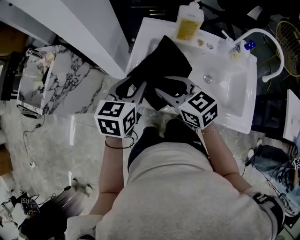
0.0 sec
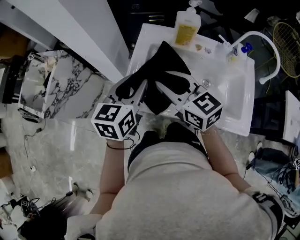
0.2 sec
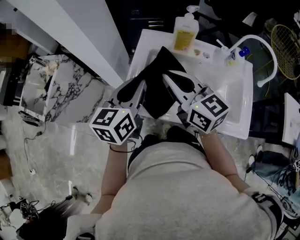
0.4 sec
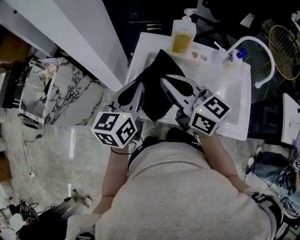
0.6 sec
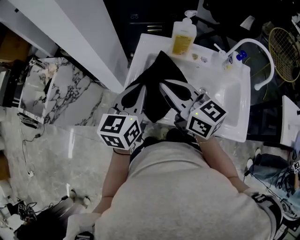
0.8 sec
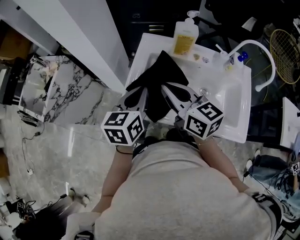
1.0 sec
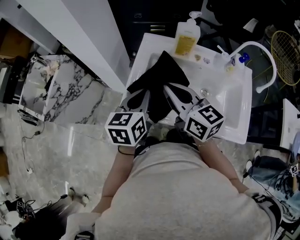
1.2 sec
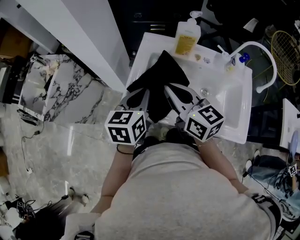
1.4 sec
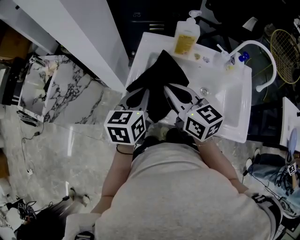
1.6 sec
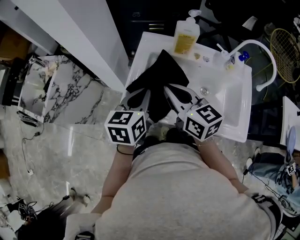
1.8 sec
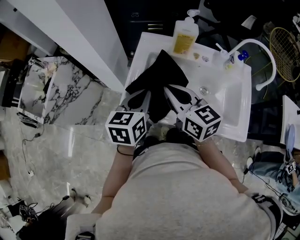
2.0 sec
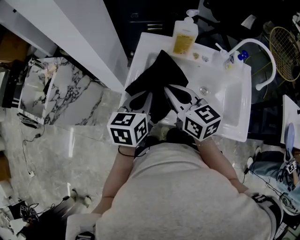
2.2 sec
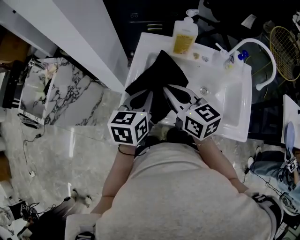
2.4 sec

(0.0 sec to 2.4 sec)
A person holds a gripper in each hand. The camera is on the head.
0.0 sec - 1.2 sec: The left gripper closes its fingers. Meanwhile the right gripper goes approximately 5 cm upward, turns by approximately 20 degrees, and closes up.
1.2 sec - 2.4 sec: The grippers make only small movements.

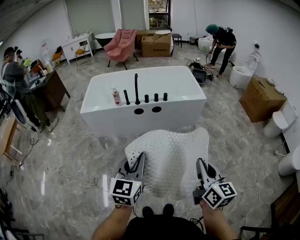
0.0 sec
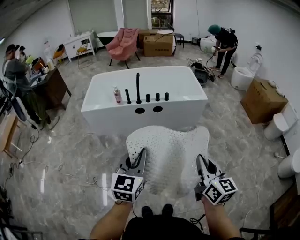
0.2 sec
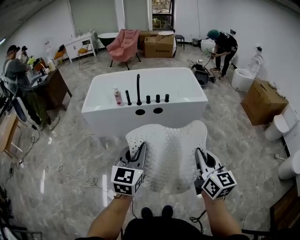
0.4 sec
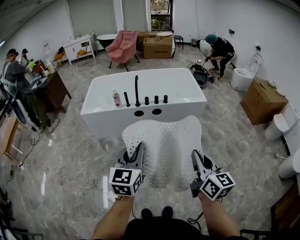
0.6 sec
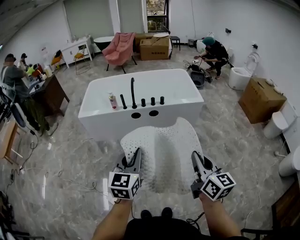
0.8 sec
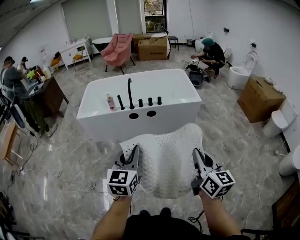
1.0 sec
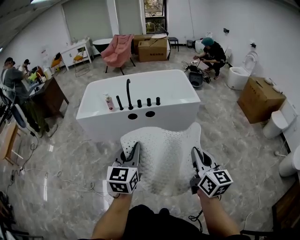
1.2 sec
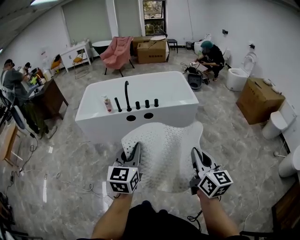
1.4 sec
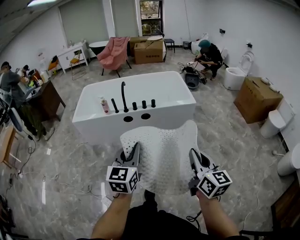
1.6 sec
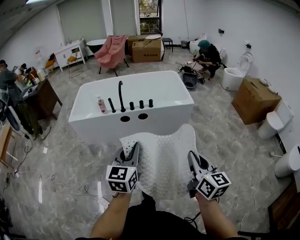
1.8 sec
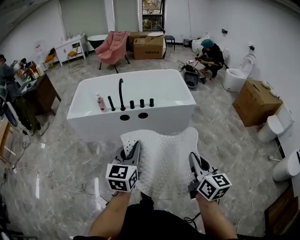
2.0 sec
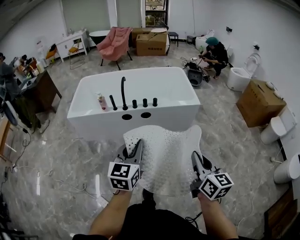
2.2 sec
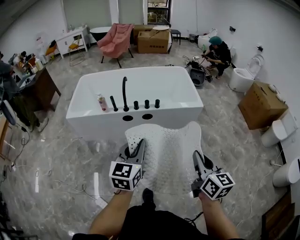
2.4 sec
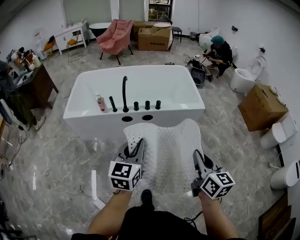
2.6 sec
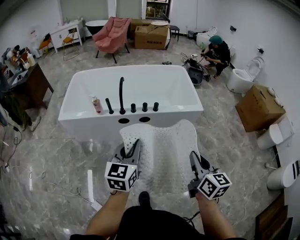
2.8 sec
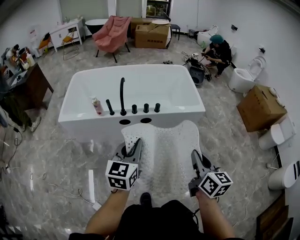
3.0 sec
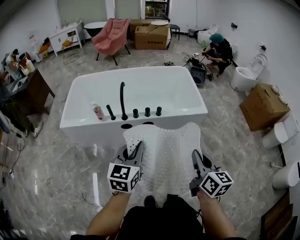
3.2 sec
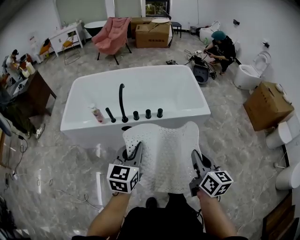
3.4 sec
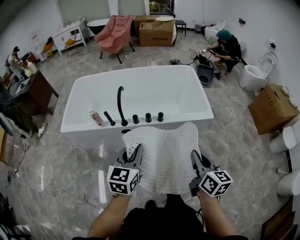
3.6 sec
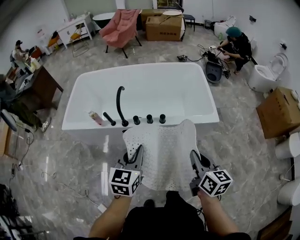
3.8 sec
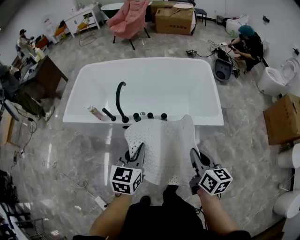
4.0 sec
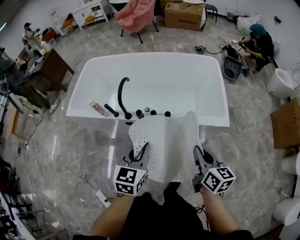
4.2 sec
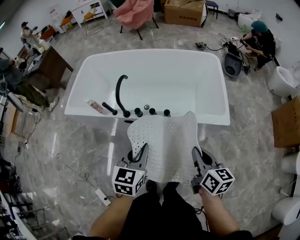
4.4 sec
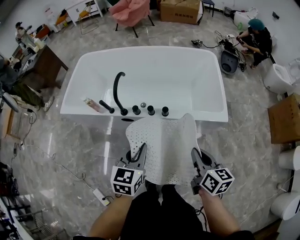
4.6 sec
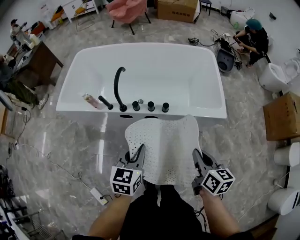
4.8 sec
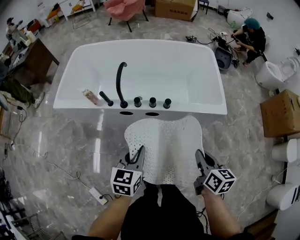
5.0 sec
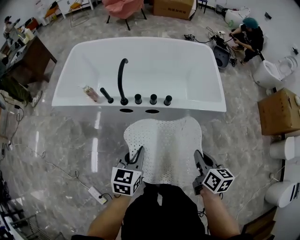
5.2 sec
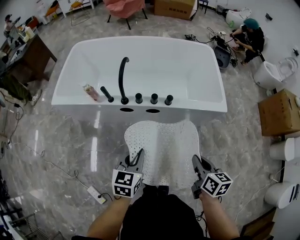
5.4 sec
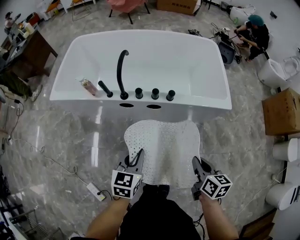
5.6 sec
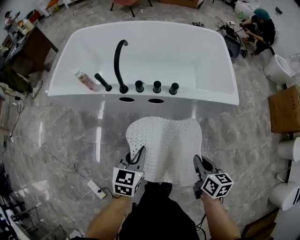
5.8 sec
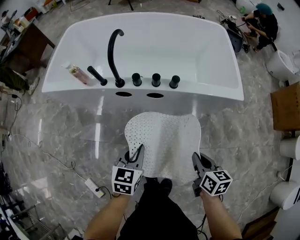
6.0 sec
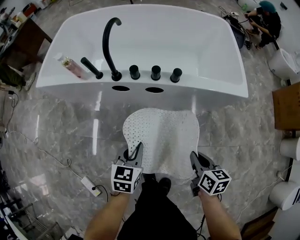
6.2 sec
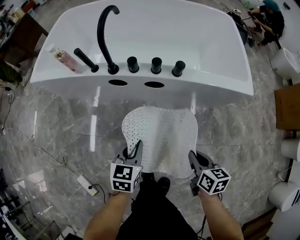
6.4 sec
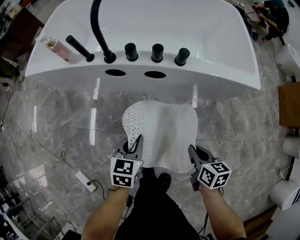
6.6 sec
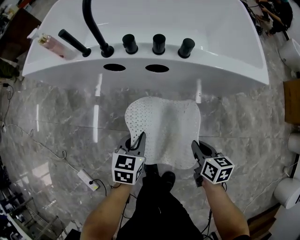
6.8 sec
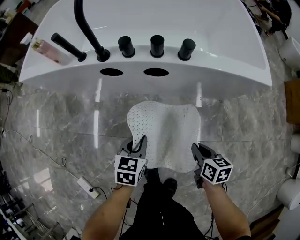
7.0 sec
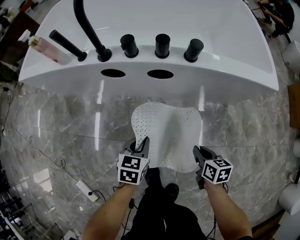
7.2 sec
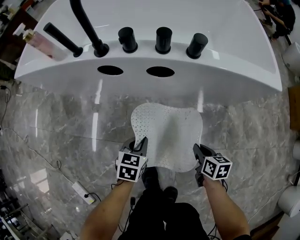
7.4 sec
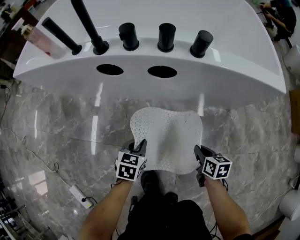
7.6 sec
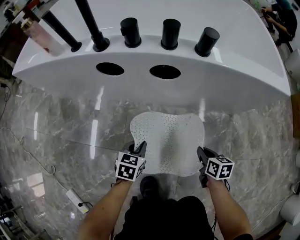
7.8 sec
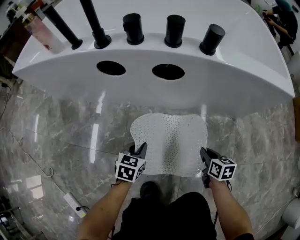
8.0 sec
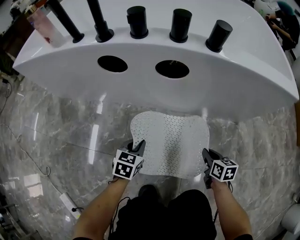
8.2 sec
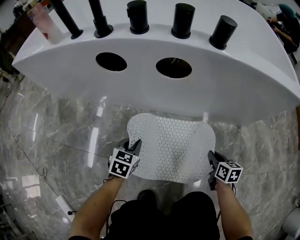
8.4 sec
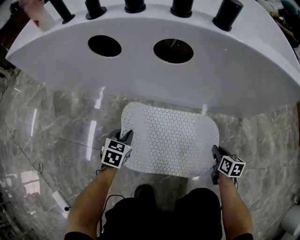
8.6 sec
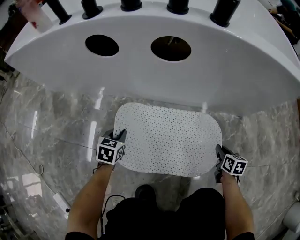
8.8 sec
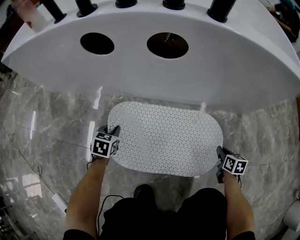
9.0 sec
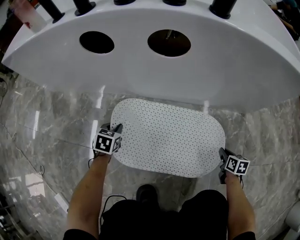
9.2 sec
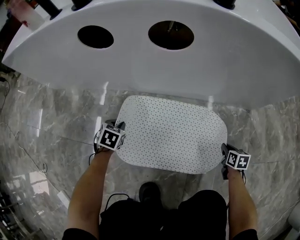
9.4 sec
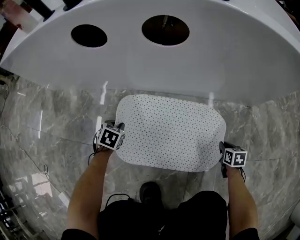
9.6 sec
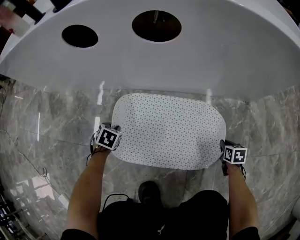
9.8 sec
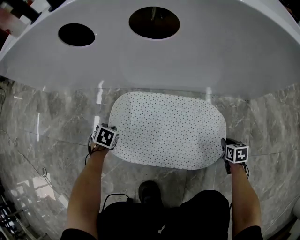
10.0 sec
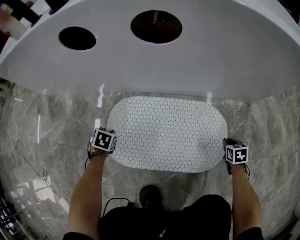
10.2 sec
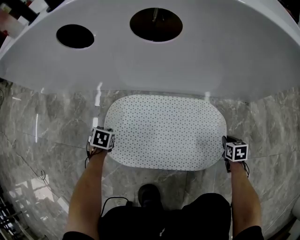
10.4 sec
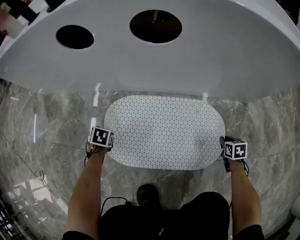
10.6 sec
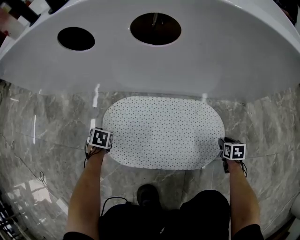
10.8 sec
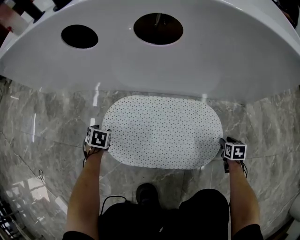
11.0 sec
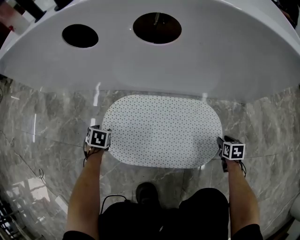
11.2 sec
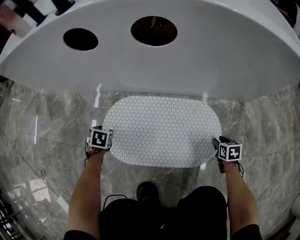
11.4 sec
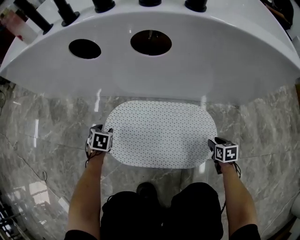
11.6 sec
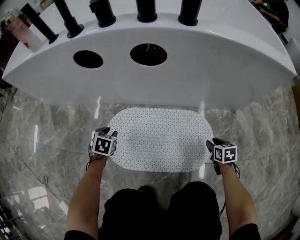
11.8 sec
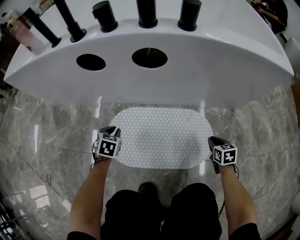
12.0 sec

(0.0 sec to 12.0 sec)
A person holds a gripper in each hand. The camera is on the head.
0.0 sec - 1.6 sec: The grippers both shift to the right and forward by approximately 10 cm.
1.6 sec - 3.0 sec: The grippers both shift forward by about 30 cm.
3.0 sec - 4.4 sec: The right gripper shifts approximately 30 cm forward and downward, and swivels approximately 20 degrees, while the left gripper shifts some 30 cm forward, to the right and downward.
4.4 sec - 6.0 sec: The left gripper travels downward by some 25 cm, while the right gripper heads downward and backward, covering approximately 25 cm.
6.0 sec - 7.6 sec: The two grippers go some 40 cm downward.
7.6 sec - 9.0 sec: The left gripper heads downward and to the left, covering approximately 25 cm. Meanwhile the right gripper moves downward and to the right, some 25 cm.
9.0 sec - 10.4 sec: Both grippers move downward, approximately 10 cm. The left gripper turns by roughly 20 degrees.
10.4 sec - 12.0 sec: Both grippers travel together upward, some 15 cm. The left gripper opens, then closes again, while the right gripper opens, then closes once more.

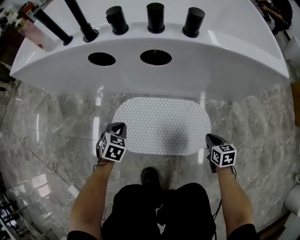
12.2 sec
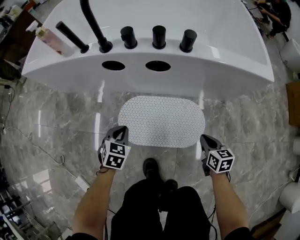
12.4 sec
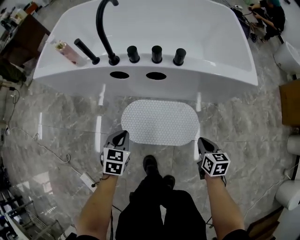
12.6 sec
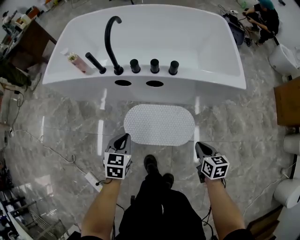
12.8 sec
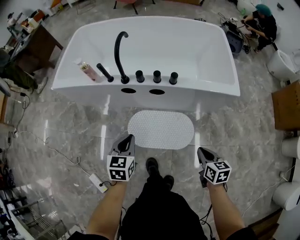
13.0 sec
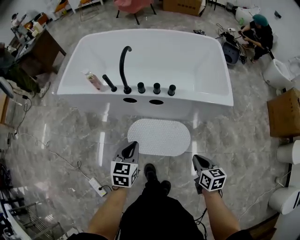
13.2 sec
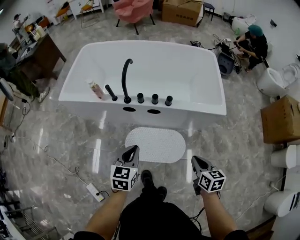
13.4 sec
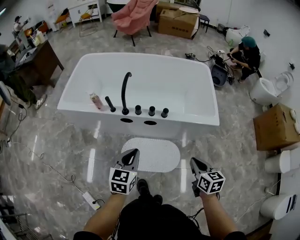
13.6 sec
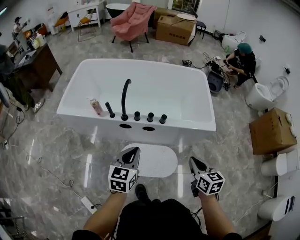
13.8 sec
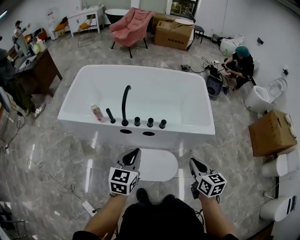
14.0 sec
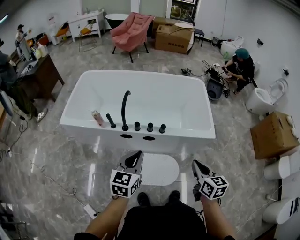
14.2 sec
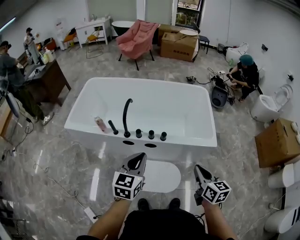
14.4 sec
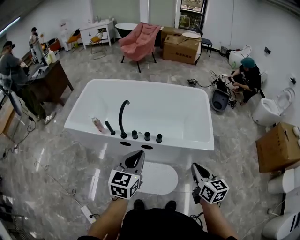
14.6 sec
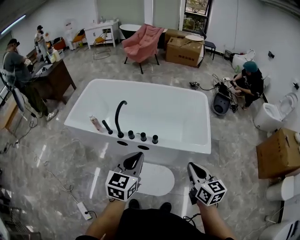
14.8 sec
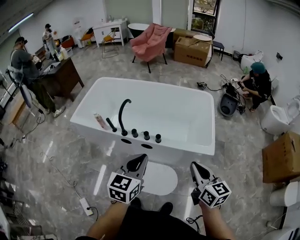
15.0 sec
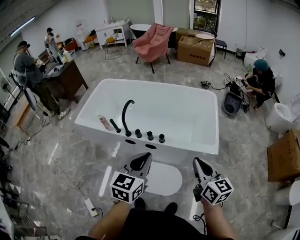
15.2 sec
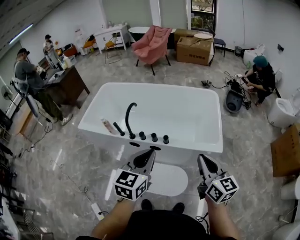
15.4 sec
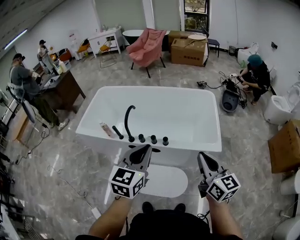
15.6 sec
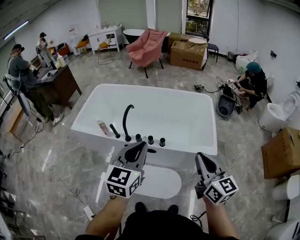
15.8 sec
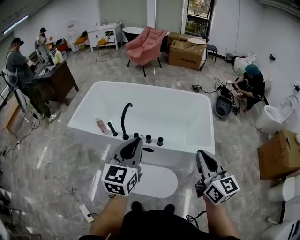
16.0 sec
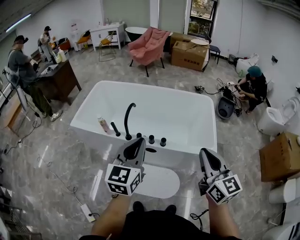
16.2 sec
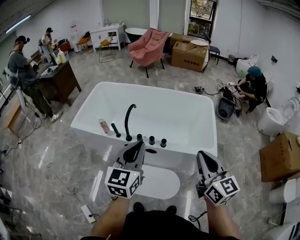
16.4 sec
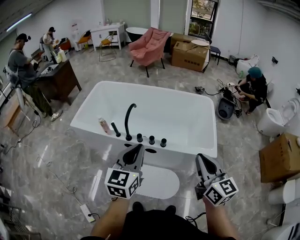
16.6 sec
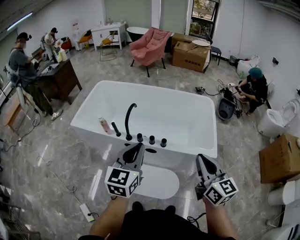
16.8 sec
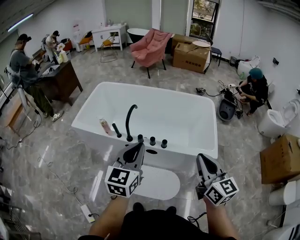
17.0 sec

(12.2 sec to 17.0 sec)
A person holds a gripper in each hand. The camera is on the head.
12.2 sec - 13.8 sec: Both grippers travel together upward, some 70 cm. The right gripper swivels some 20 degrees. The left gripper tilts its fingers roughly 40 degrees upward.
13.8 sec - 15.4 sec: The right gripper travels upward and to the right by about 20 cm, and turns by about 30 degrees. Meanwhile the left gripper shifts about 25 cm to the right and upward.
15.4 sec - 17.0 sec: The left gripper goes about 10 cm to the left, while the right gripper shifts some 5 cm to the left.

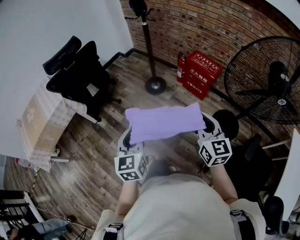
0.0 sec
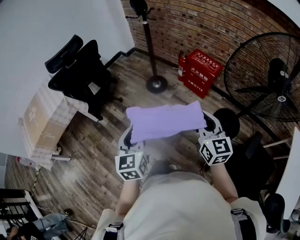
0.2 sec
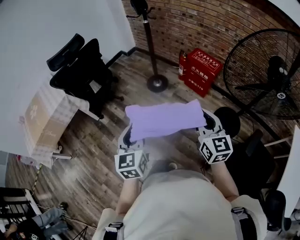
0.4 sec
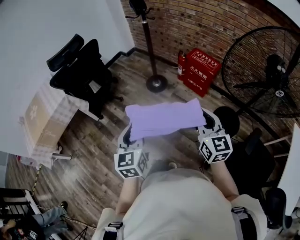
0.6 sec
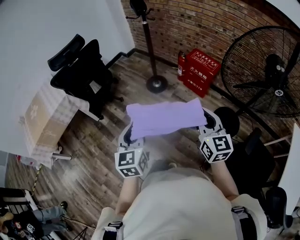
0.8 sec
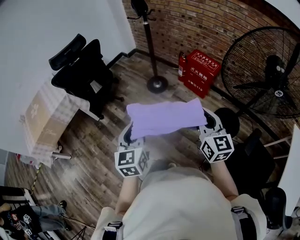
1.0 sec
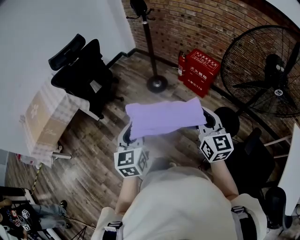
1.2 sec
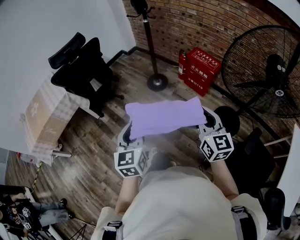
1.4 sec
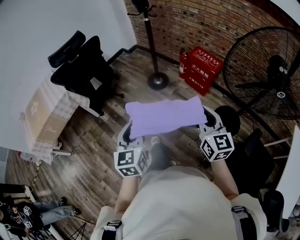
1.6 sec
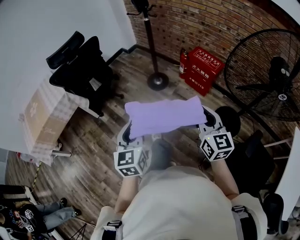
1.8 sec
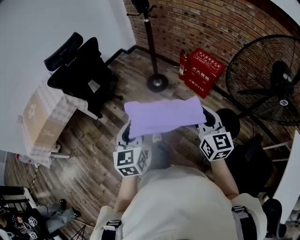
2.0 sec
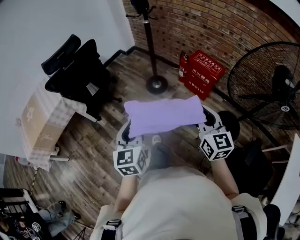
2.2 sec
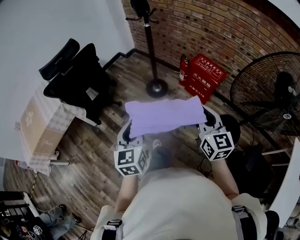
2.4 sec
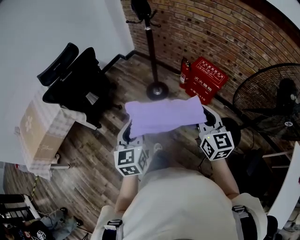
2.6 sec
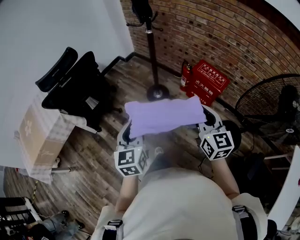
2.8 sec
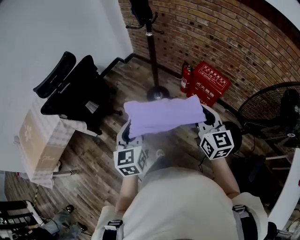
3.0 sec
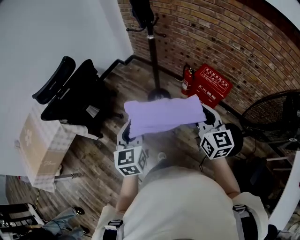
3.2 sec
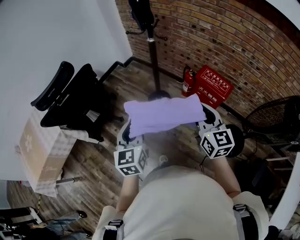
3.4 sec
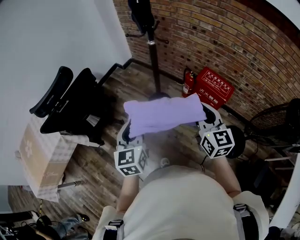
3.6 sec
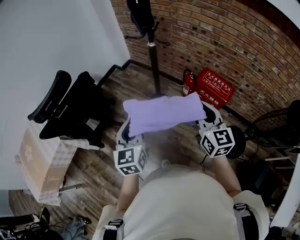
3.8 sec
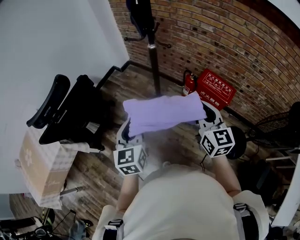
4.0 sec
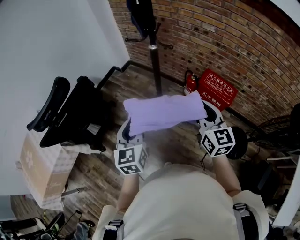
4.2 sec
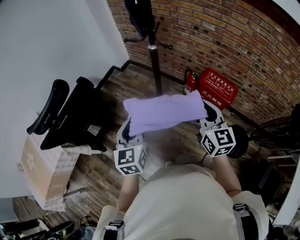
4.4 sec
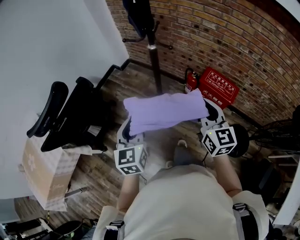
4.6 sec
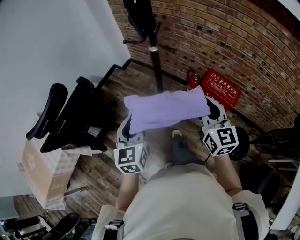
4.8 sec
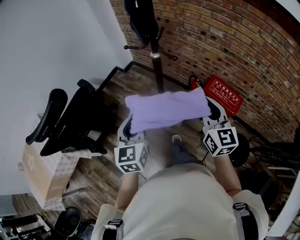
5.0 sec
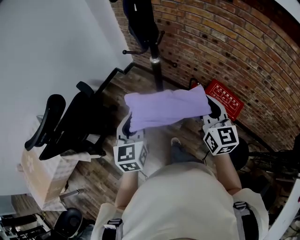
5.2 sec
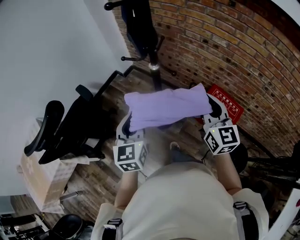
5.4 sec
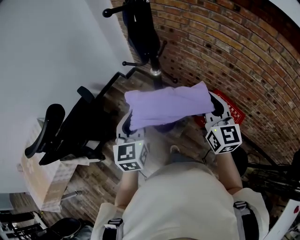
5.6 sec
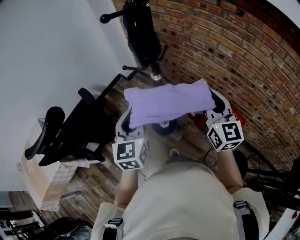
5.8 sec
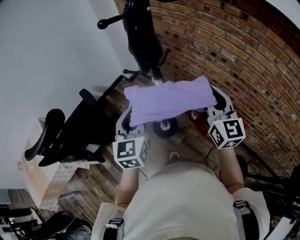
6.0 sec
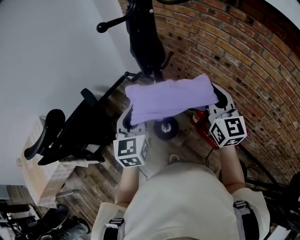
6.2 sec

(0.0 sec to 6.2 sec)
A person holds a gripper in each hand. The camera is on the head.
0.0 sec - 1.6 sec: The grippers move only a little.
1.6 sec - 3.2 sec: The two grippers go approximately 30 cm forward.
3.2 sec - 4.6 sec: Both grippers move forward, some 15 cm.
4.6 sec - 6.2 sec: Both grippers move forward, approximately 25 cm.
